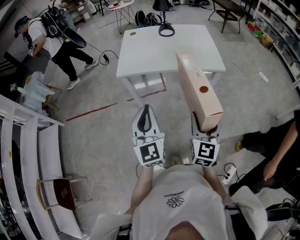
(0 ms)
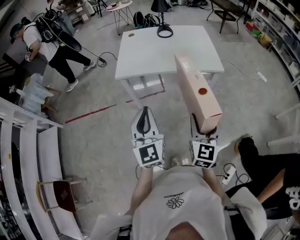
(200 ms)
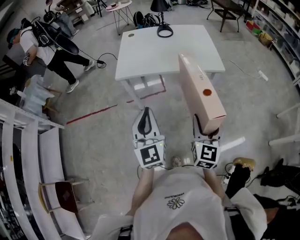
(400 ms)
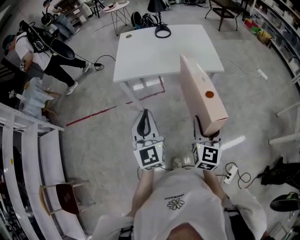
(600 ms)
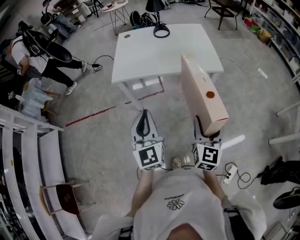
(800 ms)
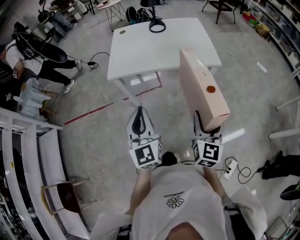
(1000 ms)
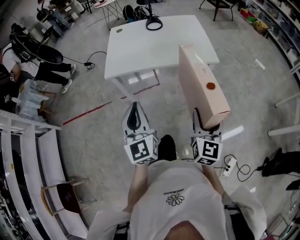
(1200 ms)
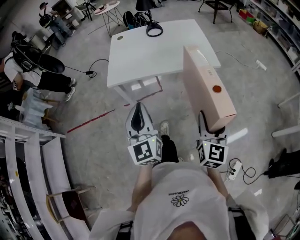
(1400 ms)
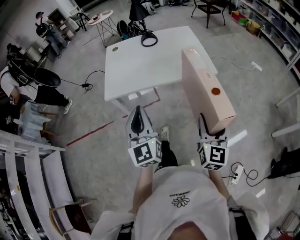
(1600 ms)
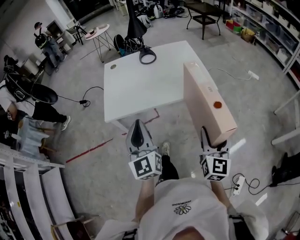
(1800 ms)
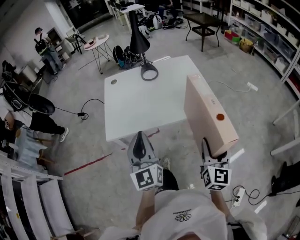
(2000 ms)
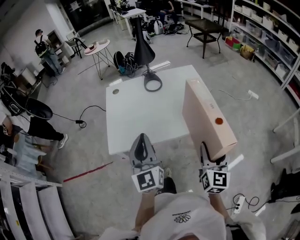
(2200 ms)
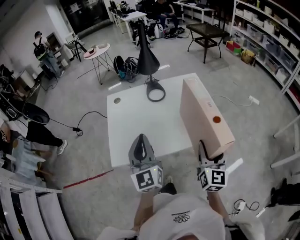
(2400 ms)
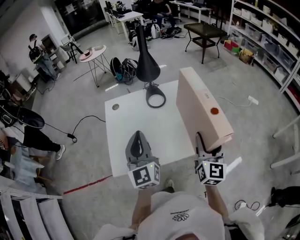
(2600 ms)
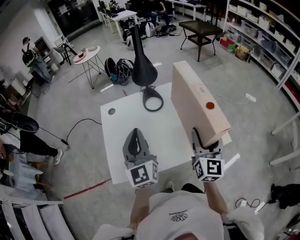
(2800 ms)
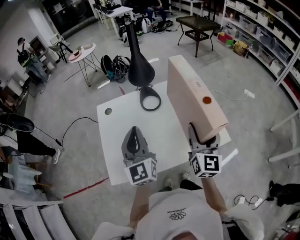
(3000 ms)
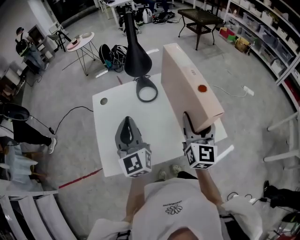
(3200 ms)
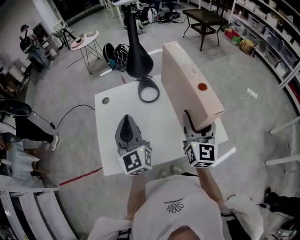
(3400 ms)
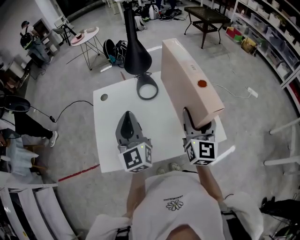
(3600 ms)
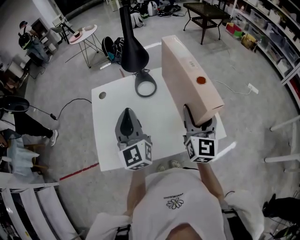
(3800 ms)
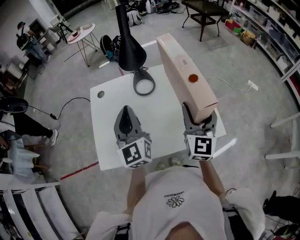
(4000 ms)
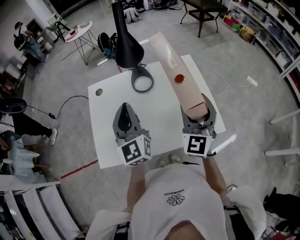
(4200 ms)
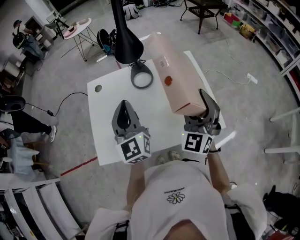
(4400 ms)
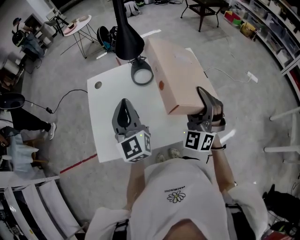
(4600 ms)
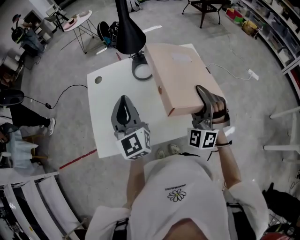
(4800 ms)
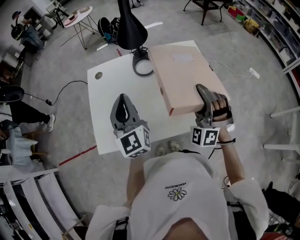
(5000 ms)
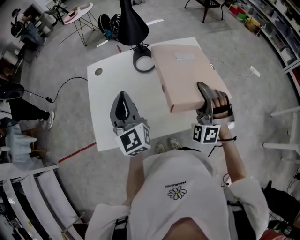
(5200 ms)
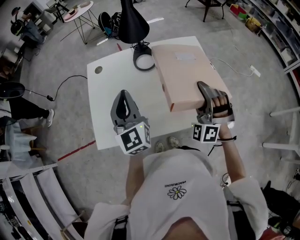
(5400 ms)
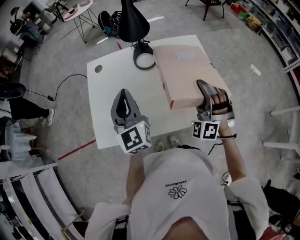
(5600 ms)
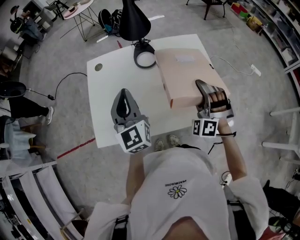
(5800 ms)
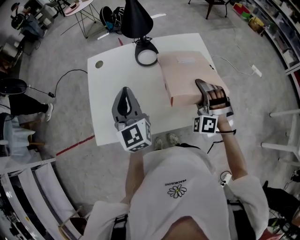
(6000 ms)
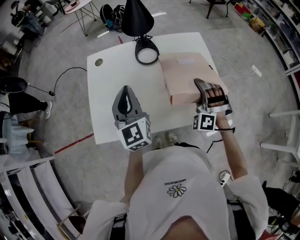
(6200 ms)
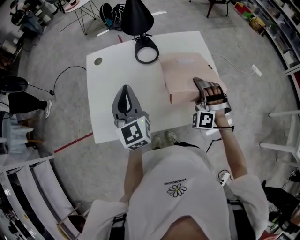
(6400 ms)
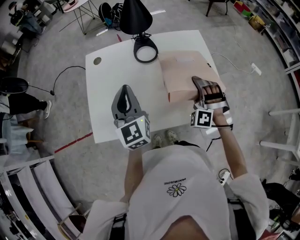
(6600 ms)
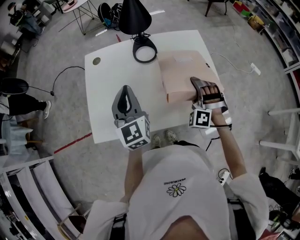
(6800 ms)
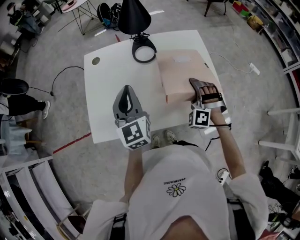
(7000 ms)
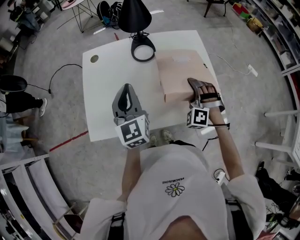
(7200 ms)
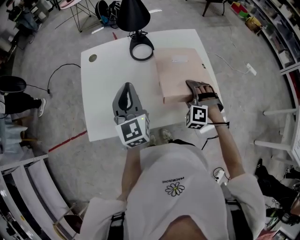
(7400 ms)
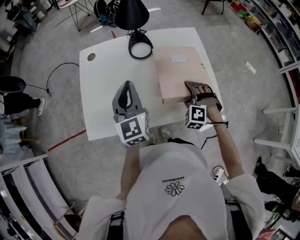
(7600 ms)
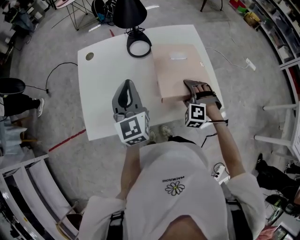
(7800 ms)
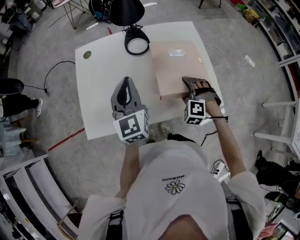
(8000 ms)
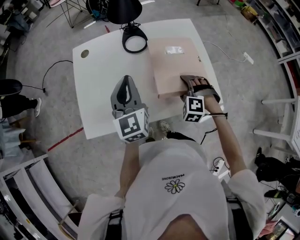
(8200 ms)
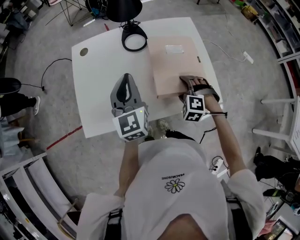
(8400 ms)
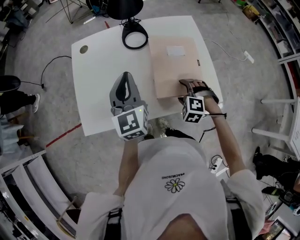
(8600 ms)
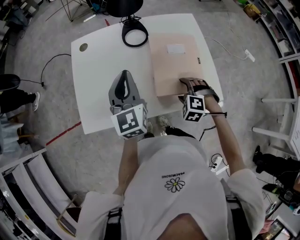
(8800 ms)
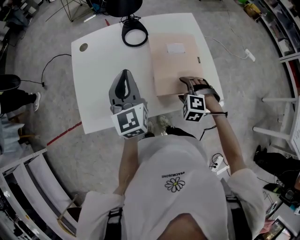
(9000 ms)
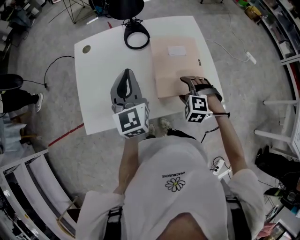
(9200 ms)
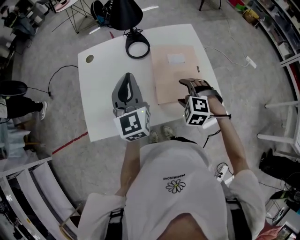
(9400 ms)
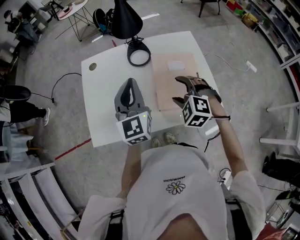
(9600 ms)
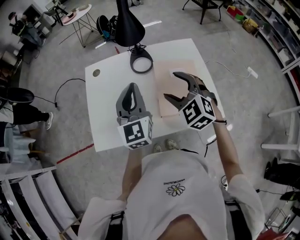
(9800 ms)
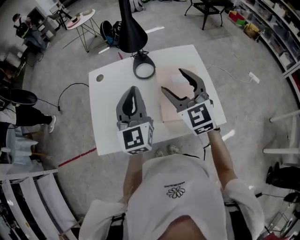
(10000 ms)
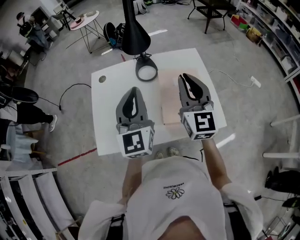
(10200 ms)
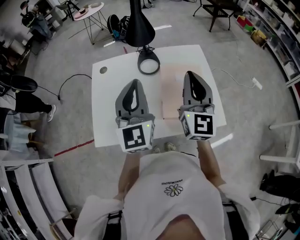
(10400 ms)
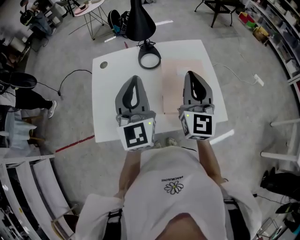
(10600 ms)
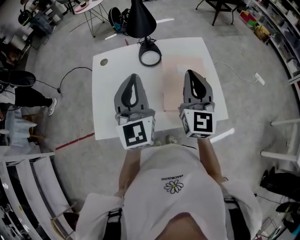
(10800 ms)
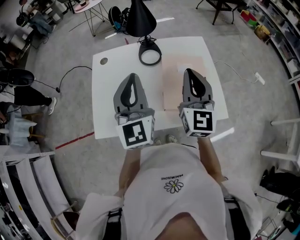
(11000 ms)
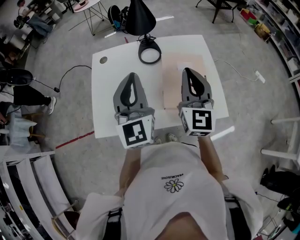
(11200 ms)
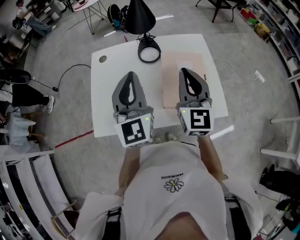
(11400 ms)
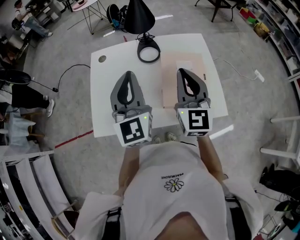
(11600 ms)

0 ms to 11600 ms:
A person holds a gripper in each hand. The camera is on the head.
0 ms to 1400 ms: The right gripper goes approximately 5 cm to the right. Meanwhile the left gripper heads forward, covering about 10 cm.
1400 ms to 2800 ms: Both grippers are carried forward, some 50 cm.
2800 ms to 4400 ms: The right gripper heads forward, covering roughly 5 cm, and rolls counterclockwise, seen from behind, by some 40 degrees, while the left gripper travels to the right and forward by about 10 cm.
4400 ms to 5800 ms: The right gripper goes about 10 cm downward, and rolls counterclockwise, seen from behind, by about 40 degrees.
5800 ms to 7200 ms: The right gripper goes about 10 cm downward.
7200 ms to 8800 ms: The right gripper goes about 10 cm downward and backward, and rotates approximately 30 degrees.
8800 ms to 10200 ms: The right gripper is displaced upward by roughly 30 cm, points its fingers approximately 70 degrees further upward, and closes up. The left gripper heads upward, covering approximately 10 cm.
10200 ms to 11600 ms: The grippers move only a little.

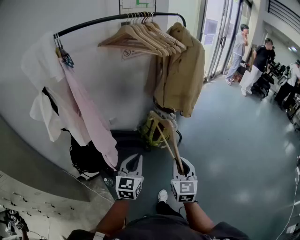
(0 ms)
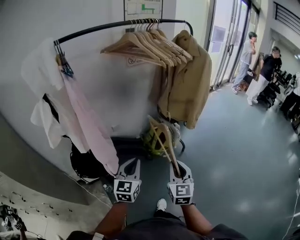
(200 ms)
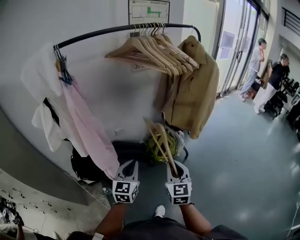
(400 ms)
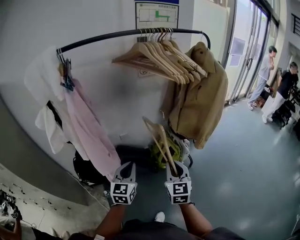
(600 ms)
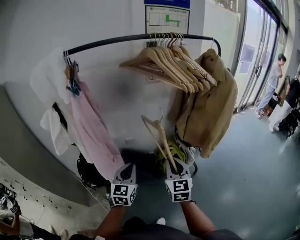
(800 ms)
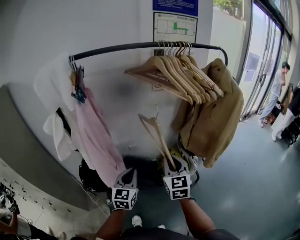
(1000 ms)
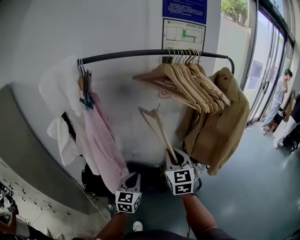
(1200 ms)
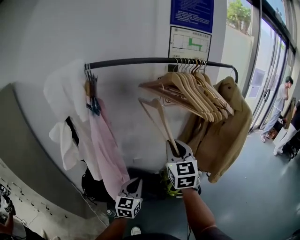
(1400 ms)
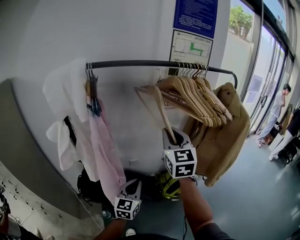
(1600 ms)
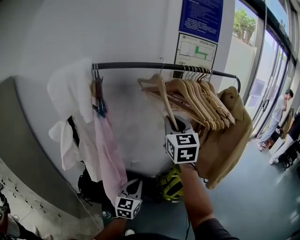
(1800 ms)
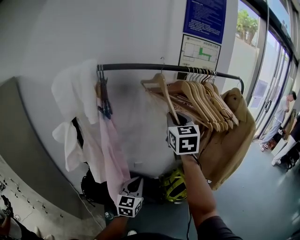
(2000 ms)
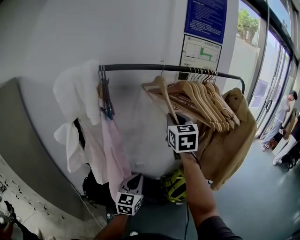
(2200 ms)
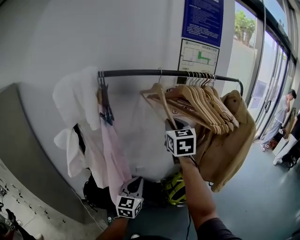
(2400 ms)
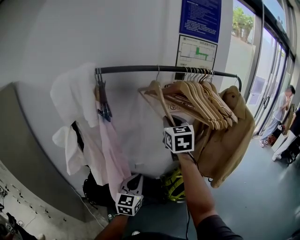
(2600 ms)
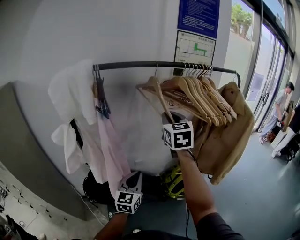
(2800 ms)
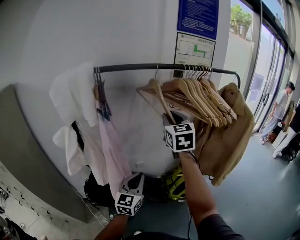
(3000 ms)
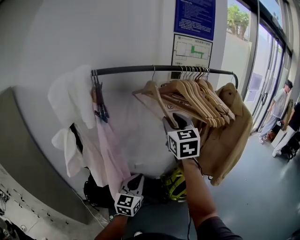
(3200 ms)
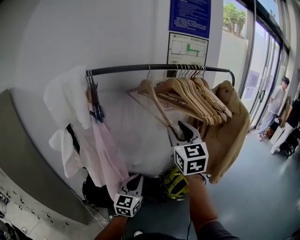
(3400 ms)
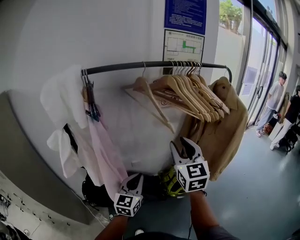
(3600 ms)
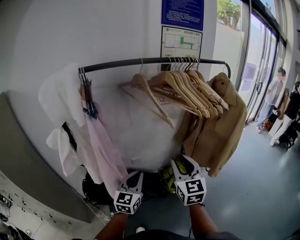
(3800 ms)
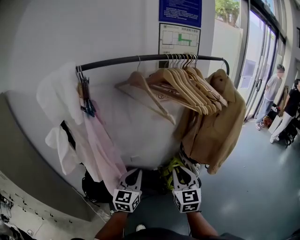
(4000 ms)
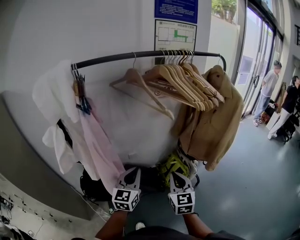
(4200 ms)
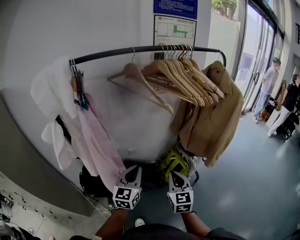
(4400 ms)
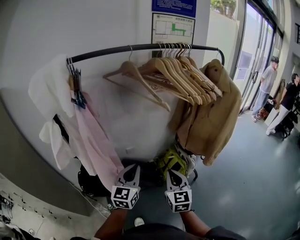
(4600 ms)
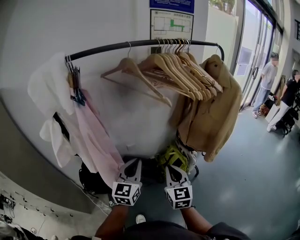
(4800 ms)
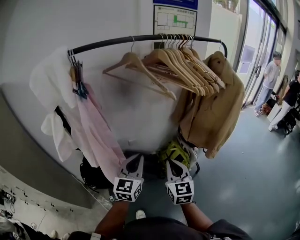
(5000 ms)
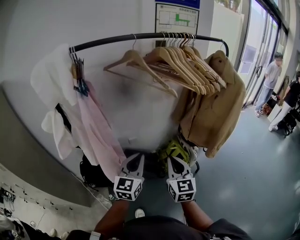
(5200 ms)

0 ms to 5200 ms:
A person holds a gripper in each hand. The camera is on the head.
0 ms to 1800 ms: The left gripper travels forward by some 20 cm; the right gripper moves forward and upward, about 50 cm, and swivels about 30 degrees.
1800 ms to 3400 ms: The right gripper changes place by approximately 5 cm, and opens.
3400 ms to 5200 ms: The right gripper is displaced downward and backward by about 25 cm, and closes up; the left gripper shifts by about 5 cm.

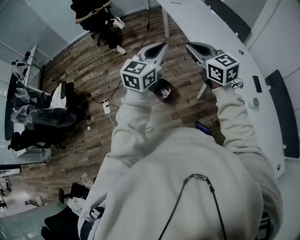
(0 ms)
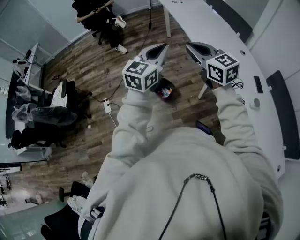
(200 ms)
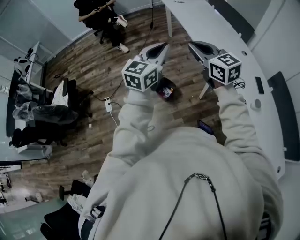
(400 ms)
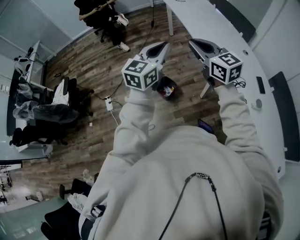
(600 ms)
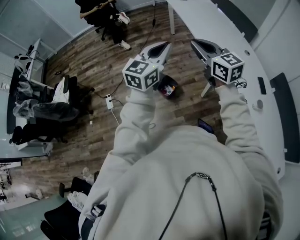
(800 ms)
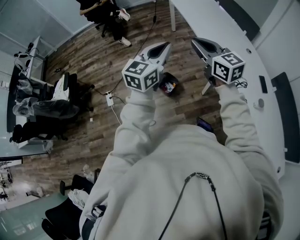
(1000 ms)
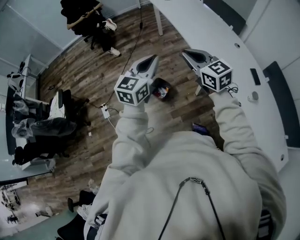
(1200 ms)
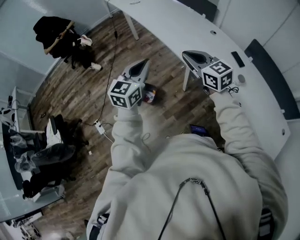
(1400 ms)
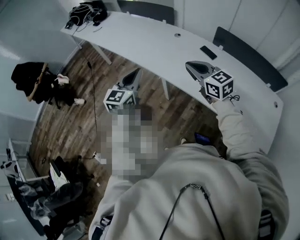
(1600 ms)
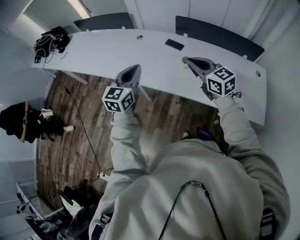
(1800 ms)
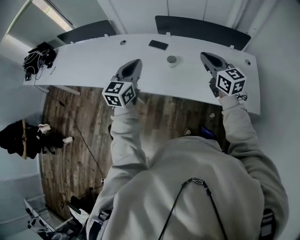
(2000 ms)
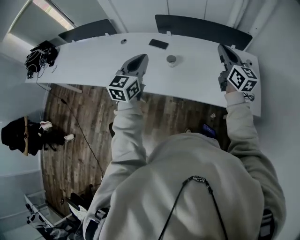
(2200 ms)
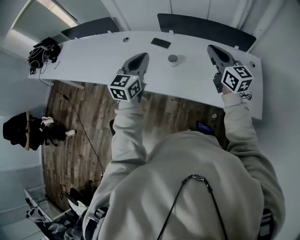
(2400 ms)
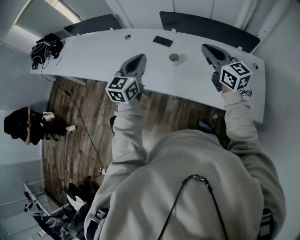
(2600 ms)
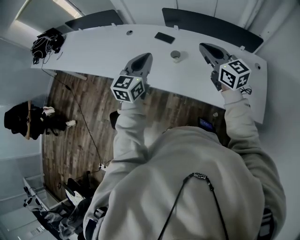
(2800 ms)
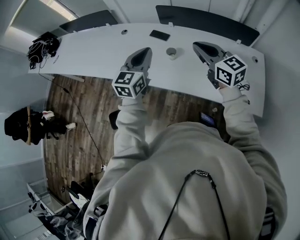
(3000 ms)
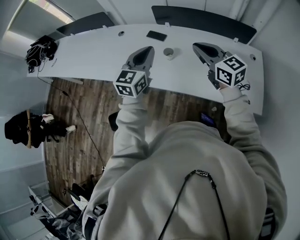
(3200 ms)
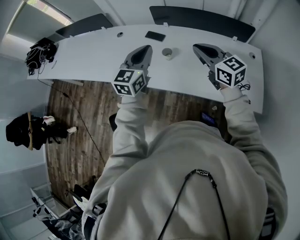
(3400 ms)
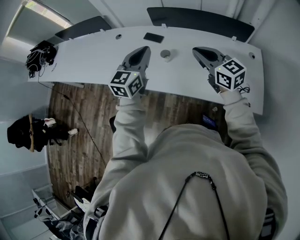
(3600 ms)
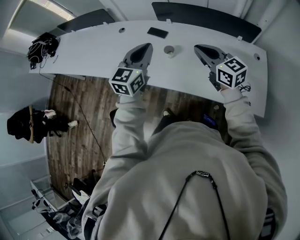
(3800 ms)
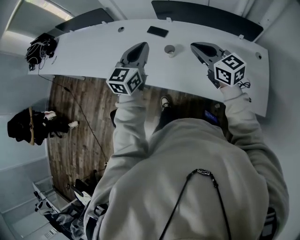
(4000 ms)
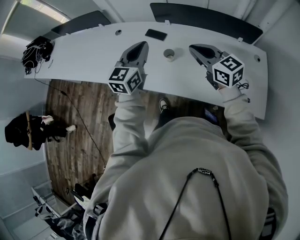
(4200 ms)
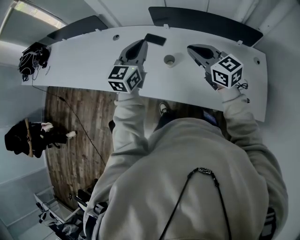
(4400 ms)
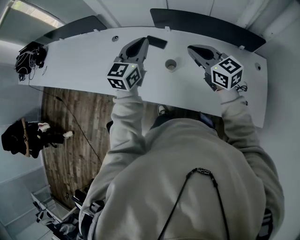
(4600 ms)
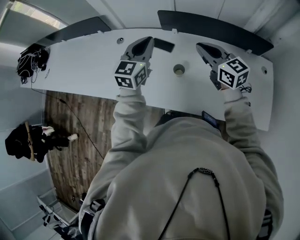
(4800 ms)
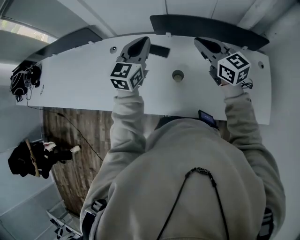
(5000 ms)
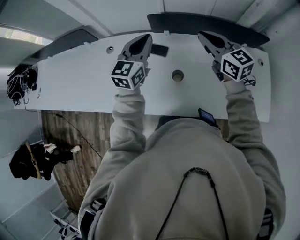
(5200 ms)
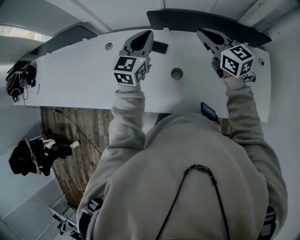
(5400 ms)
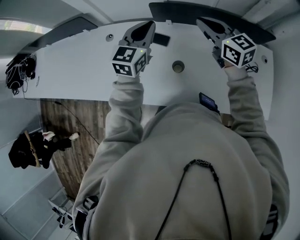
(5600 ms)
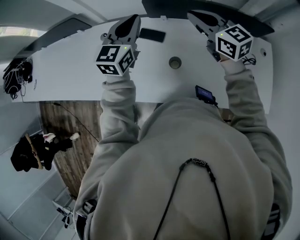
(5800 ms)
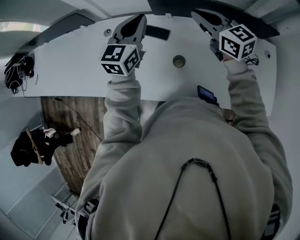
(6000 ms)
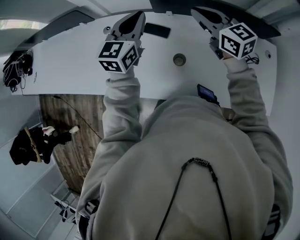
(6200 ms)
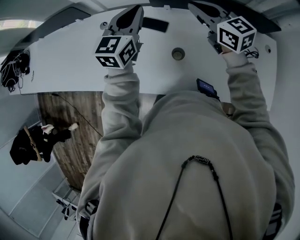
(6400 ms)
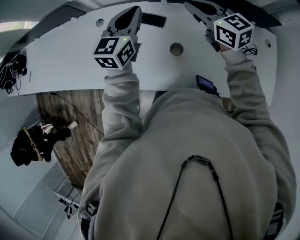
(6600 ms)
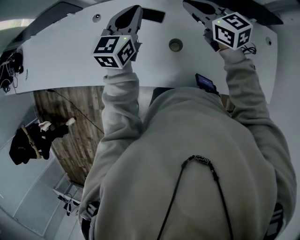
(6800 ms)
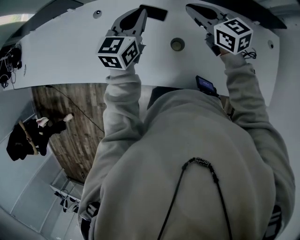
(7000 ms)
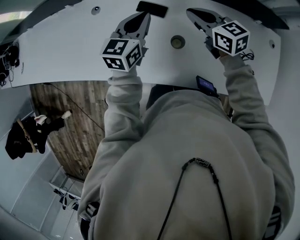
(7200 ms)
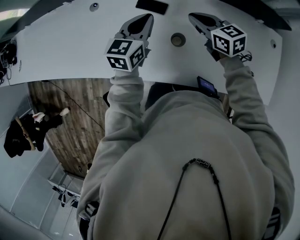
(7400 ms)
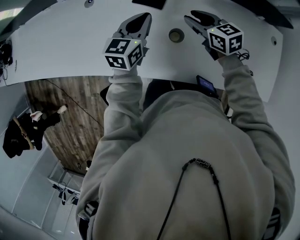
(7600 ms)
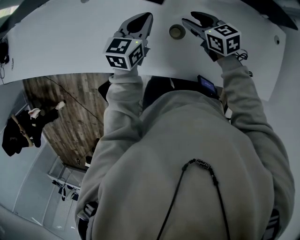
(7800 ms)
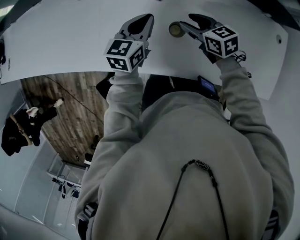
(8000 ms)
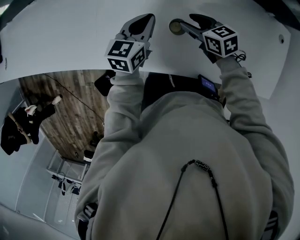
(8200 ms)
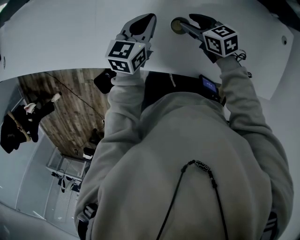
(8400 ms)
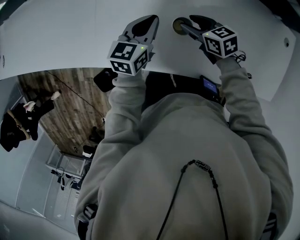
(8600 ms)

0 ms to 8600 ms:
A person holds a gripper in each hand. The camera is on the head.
0 ms to 1400 ms: The left gripper is displaced downward and to the right by roughly 10 cm; the right gripper heads to the right and downward, covering roughly 15 cm.
1400 ms to 2800 ms: Both grippers are carried some 50 cm. The right gripper turns by approximately 40 degrees. The left gripper turns by approximately 40 degrees.
2800 ms to 4400 ms: The right gripper shifts roughly 10 cm forward and downward, while the left gripper heads forward, covering approximately 15 cm.
4400 ms to 5800 ms: Both grippers travel together forward, approximately 25 cm.
5800 ms to 7200 ms: Both grippers move downward, roughly 15 cm.
7200 ms to 8600 ms: The grippers both shift downward by approximately 20 cm. The right gripper turns by approximately 20 degrees, and opens up.
